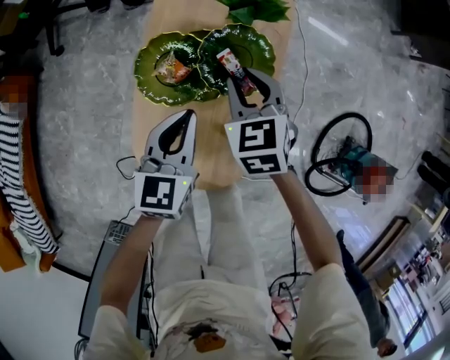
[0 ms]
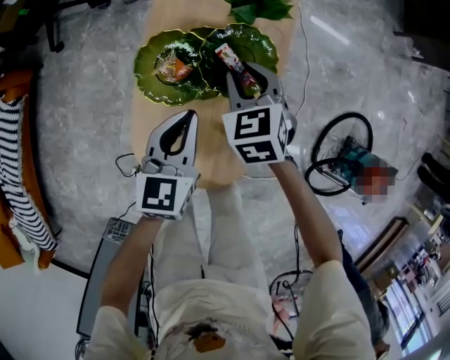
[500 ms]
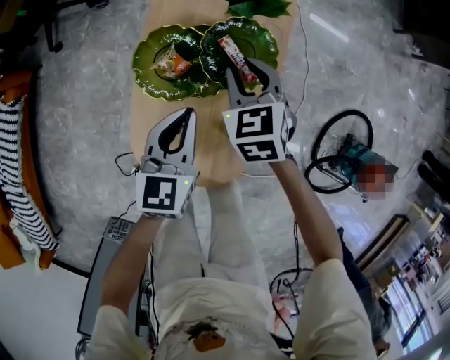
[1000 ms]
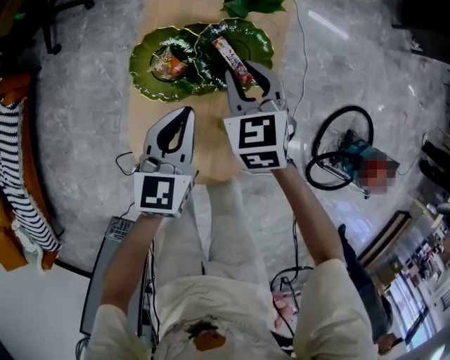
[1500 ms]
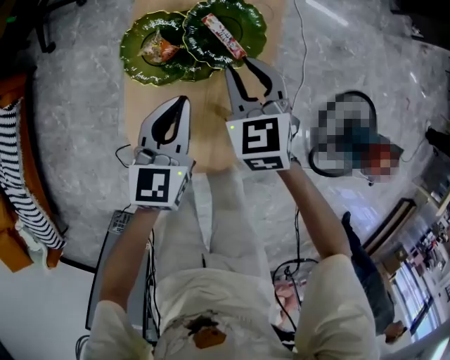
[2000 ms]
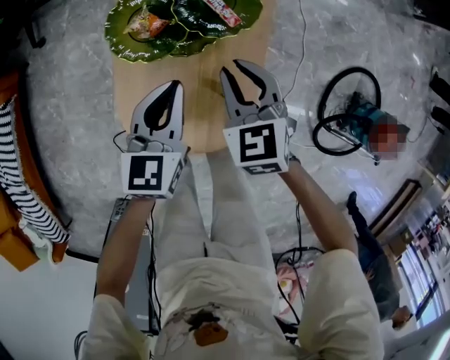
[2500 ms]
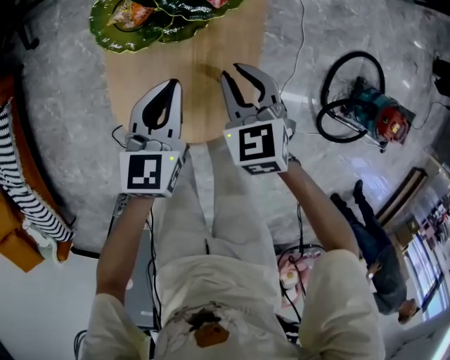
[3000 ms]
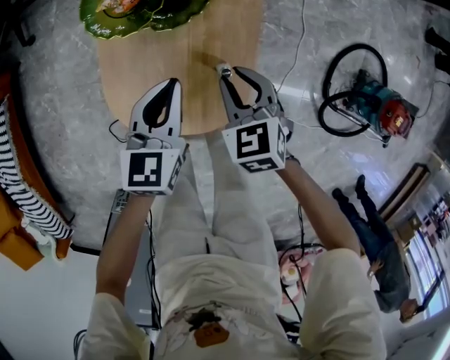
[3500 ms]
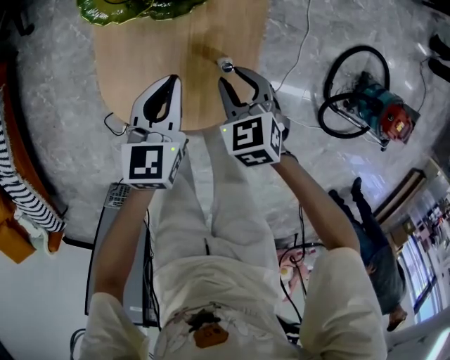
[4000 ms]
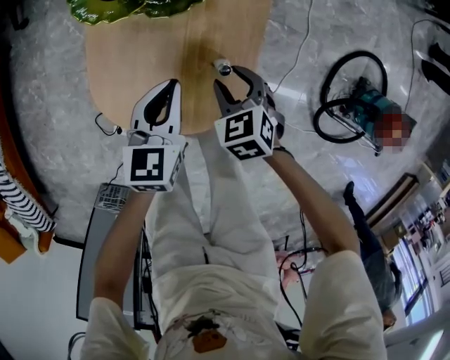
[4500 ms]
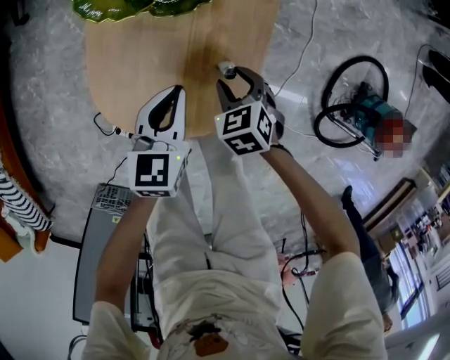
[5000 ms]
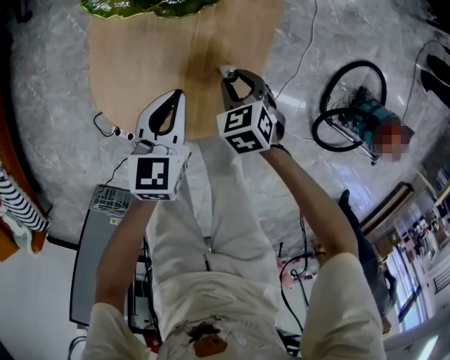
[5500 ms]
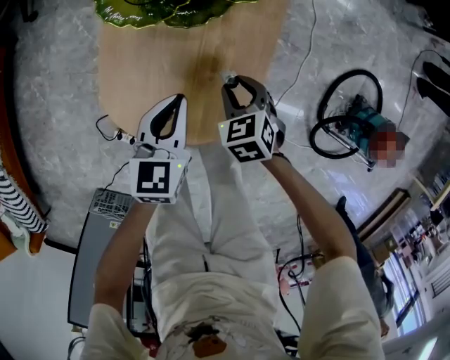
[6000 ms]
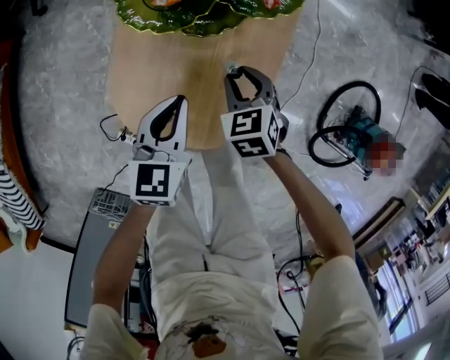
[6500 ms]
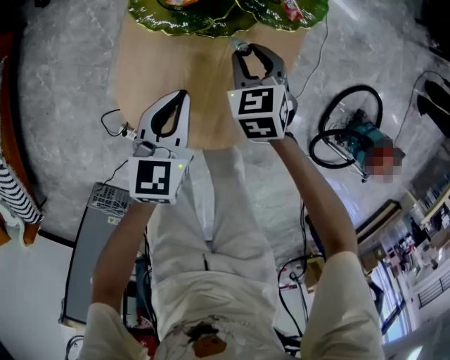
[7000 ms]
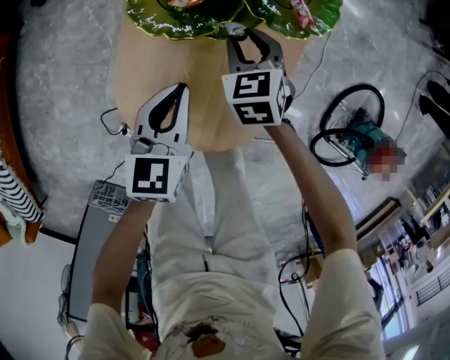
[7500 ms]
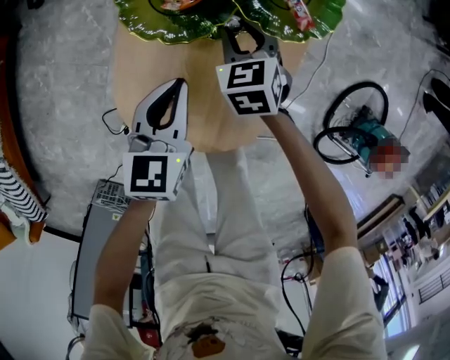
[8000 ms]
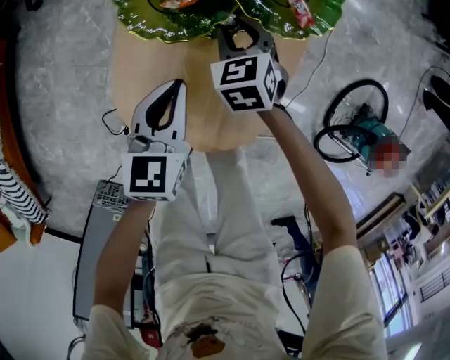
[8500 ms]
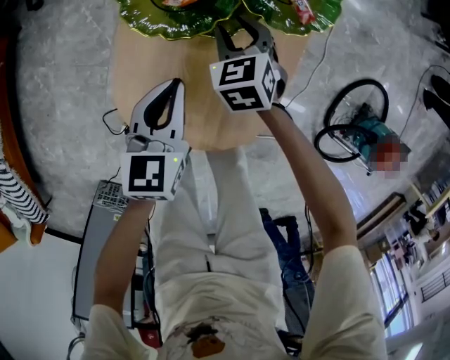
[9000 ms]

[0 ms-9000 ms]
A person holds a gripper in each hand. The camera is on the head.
0 ms to 2000 ms: The grippers make only small movements.
2000 ms to 4500 ms: The right gripper goes approximately 30 cm backward and downward, and changes its angle by some 20 degrees. The left gripper heads downward and backward, covering some 20 cm.
4500 ms to 7000 ms: The right gripper is displaced forward and to the left by about 15 cm, while the left gripper moves to the left, approximately 10 cm.
7000 ms to 9000 ms: The right gripper heads forward, covering some 5 cm.

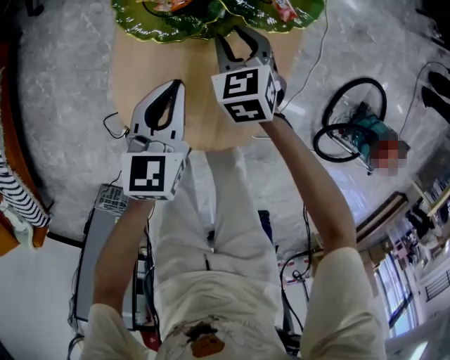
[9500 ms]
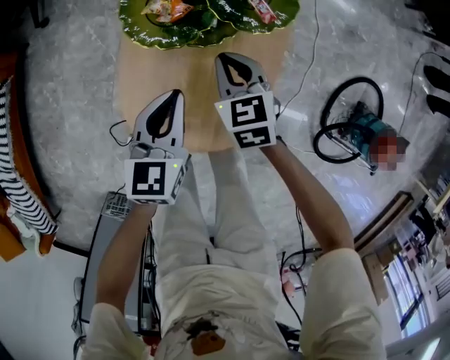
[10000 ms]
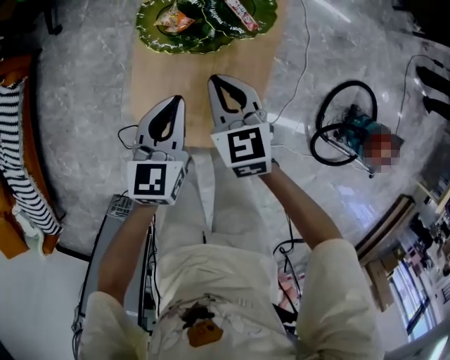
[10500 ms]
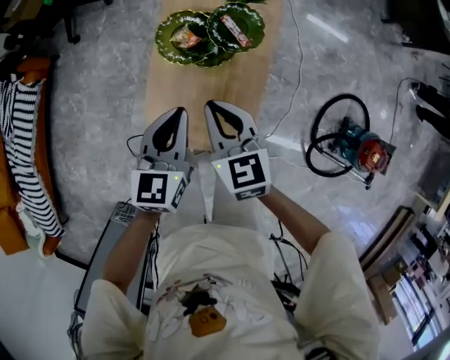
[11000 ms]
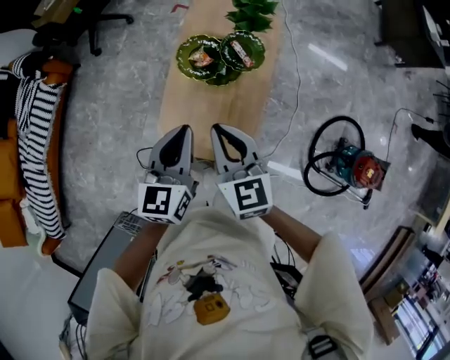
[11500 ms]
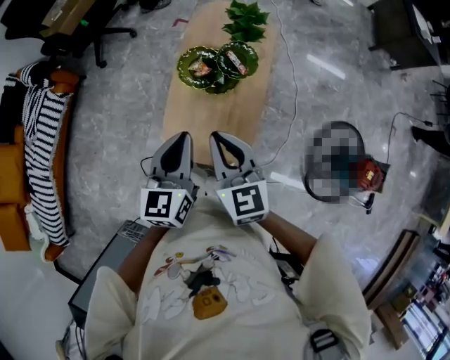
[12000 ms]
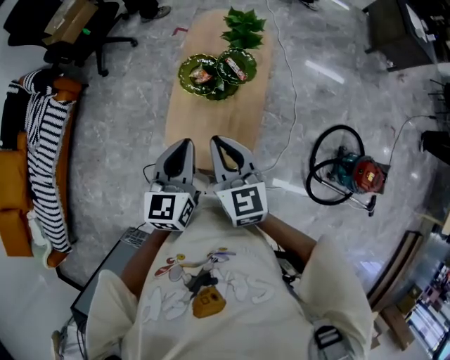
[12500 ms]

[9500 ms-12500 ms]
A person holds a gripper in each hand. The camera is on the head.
9500 ms to 11000 ms: The left gripper heads upward, covering some 25 cm. Meanwhile the right gripper is displaced upward and backward by about 35 cm, rotates roughly 20 degrees, and closes up.
11000 ms to 12500 ms: Both grippers move upward and backward, some 20 cm.

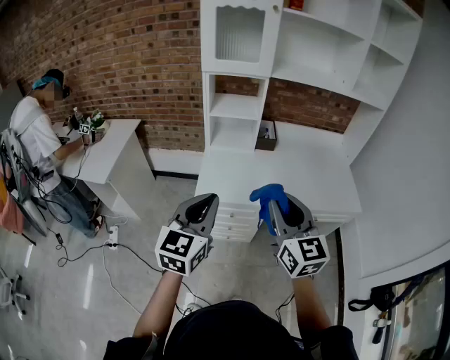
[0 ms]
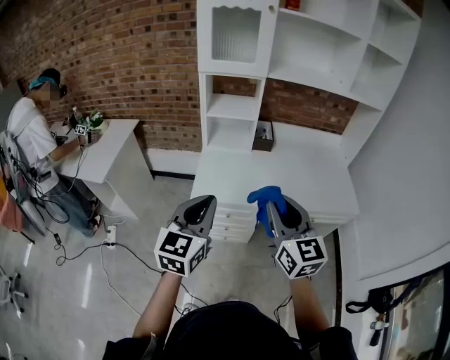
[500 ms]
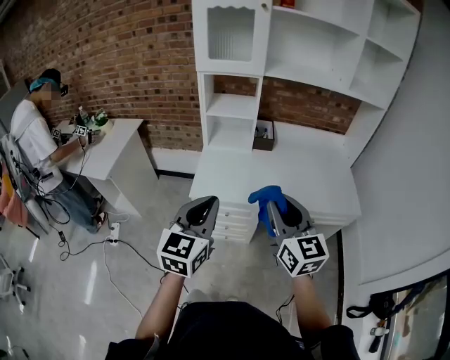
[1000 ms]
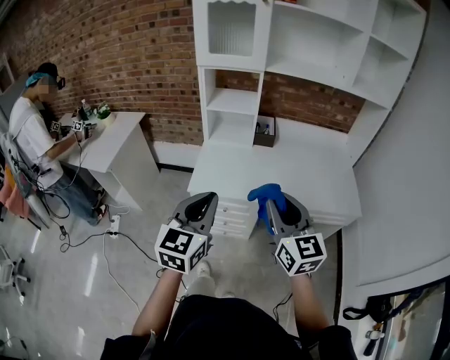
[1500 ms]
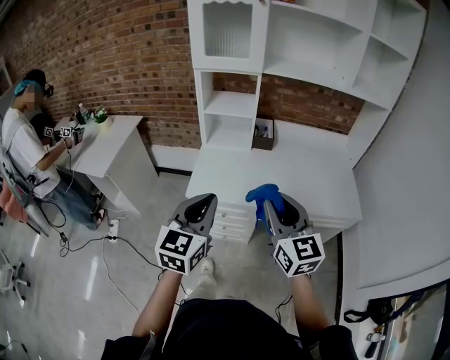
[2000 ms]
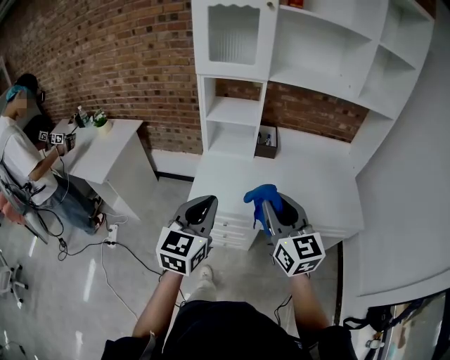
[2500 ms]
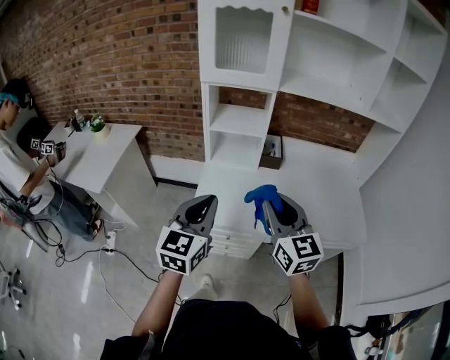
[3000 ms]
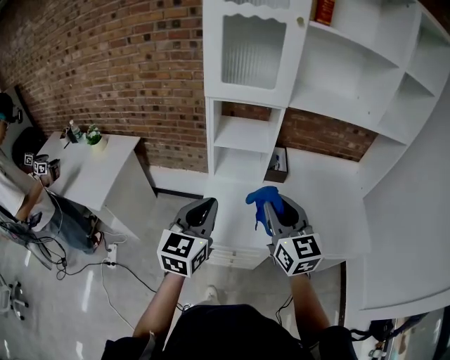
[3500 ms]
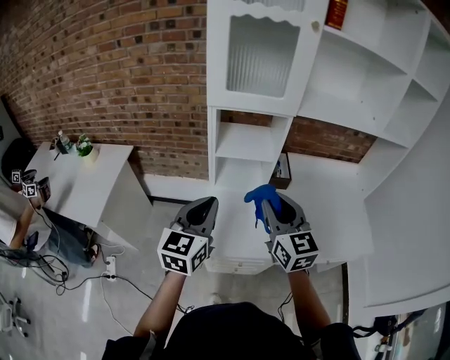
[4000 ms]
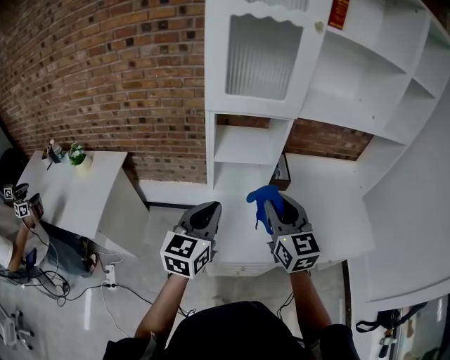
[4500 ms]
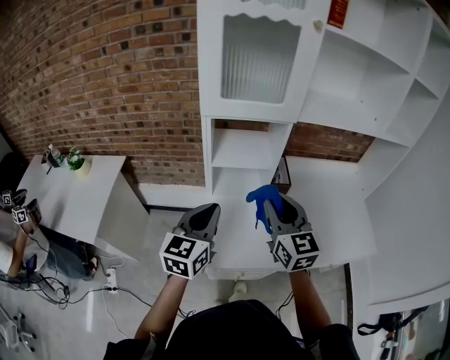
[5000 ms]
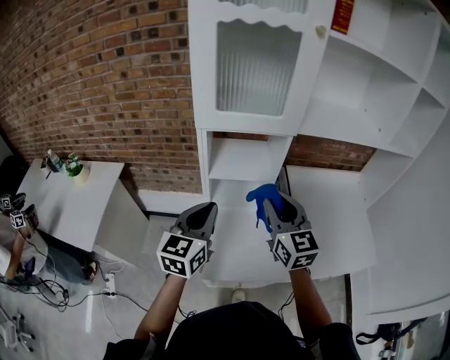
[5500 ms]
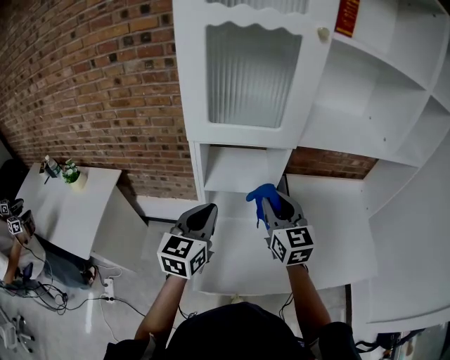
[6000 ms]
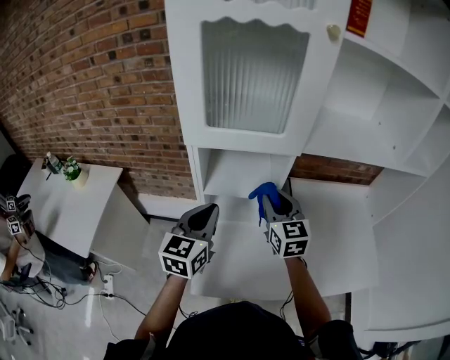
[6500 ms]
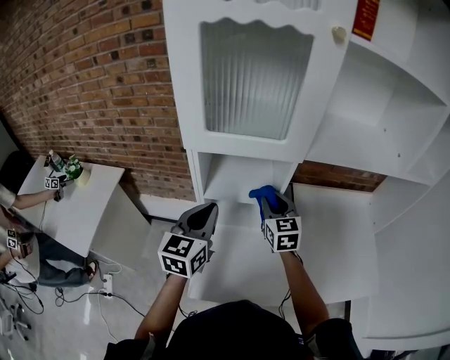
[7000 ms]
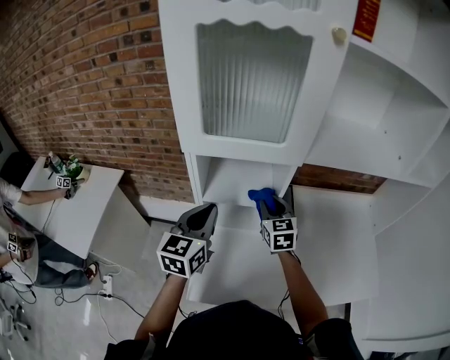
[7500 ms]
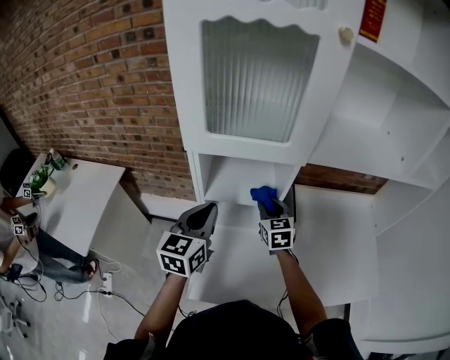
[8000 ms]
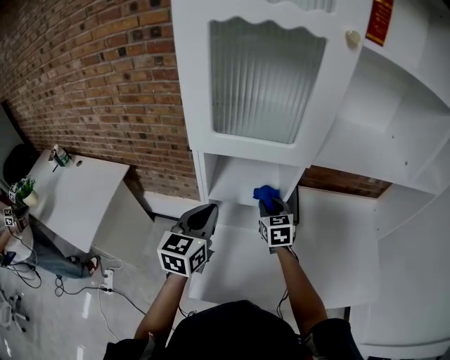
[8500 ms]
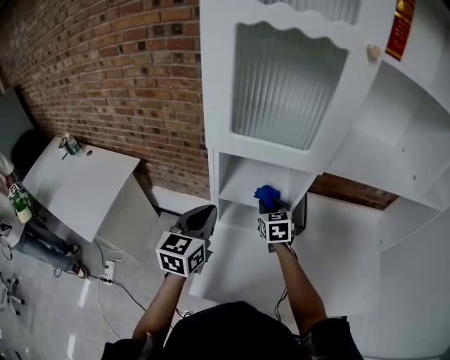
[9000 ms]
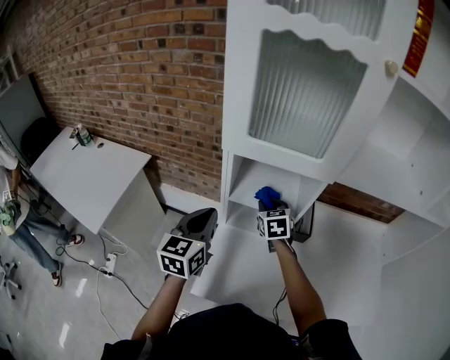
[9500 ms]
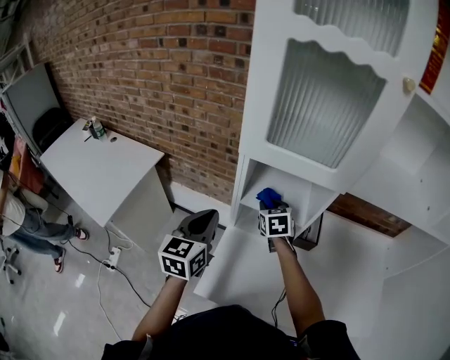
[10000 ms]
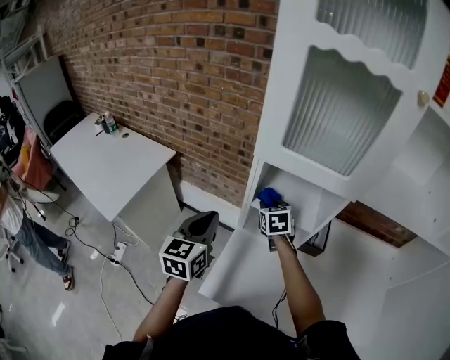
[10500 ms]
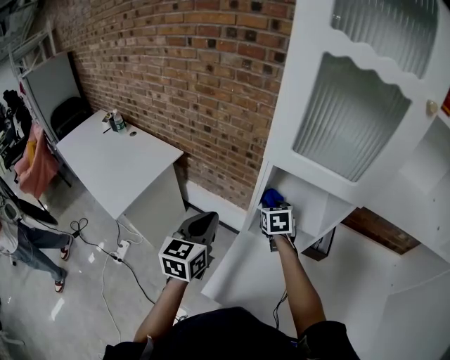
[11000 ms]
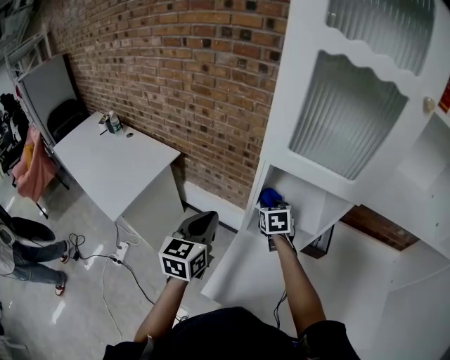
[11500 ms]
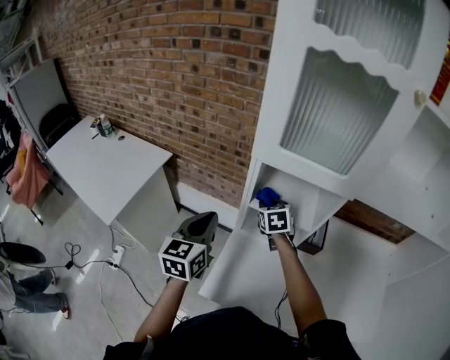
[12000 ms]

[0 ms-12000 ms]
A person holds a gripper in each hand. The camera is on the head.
0 ms to 2000 ms: The two grippers go some 5 cm to the right.
2000 ms to 4000 ms: The grippers both shift forward and to the left by approximately 30 cm.
4000 ms to 6000 ms: The grippers both shift forward by about 15 cm.
6000 ms to 8000 ms: The left gripper heads forward, covering about 5 cm. Meanwhile the right gripper moves downward and forward, approximately 20 cm.
8000 ms to 10000 ms: The grippers both shift to the left by some 10 cm.
10000 ms to 12000 ms: The grippers make only small movements.

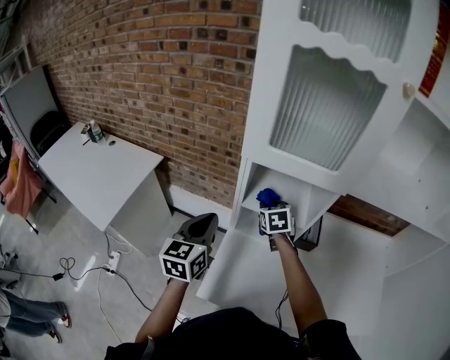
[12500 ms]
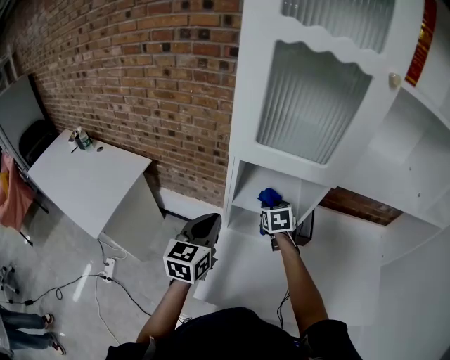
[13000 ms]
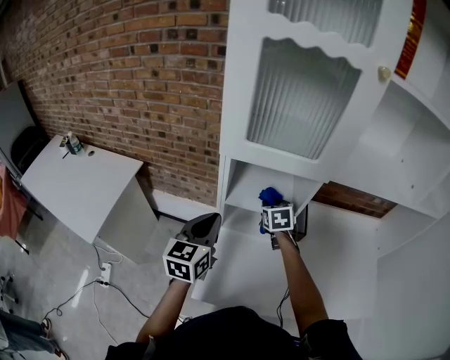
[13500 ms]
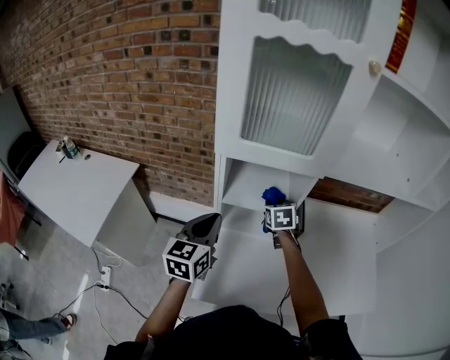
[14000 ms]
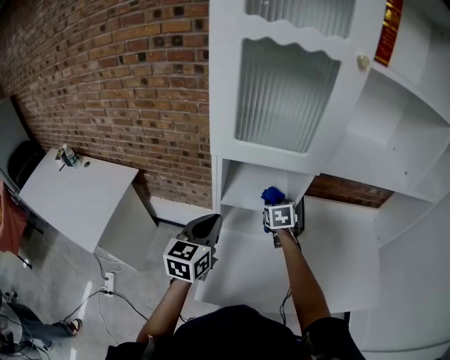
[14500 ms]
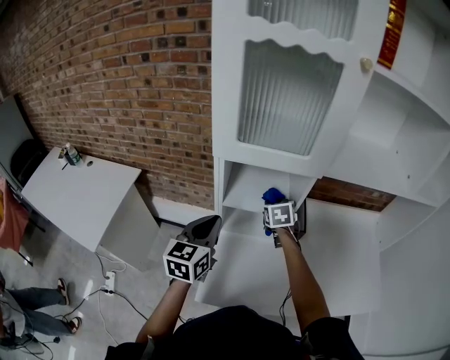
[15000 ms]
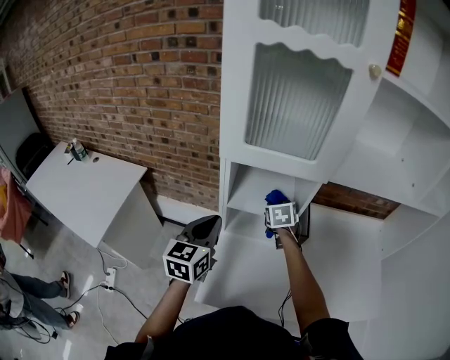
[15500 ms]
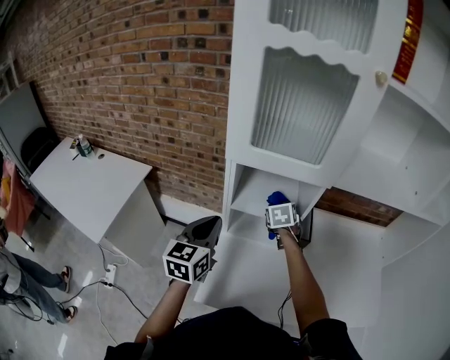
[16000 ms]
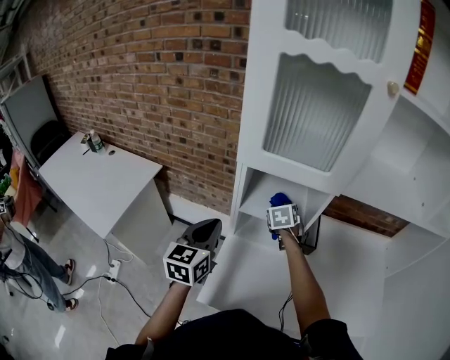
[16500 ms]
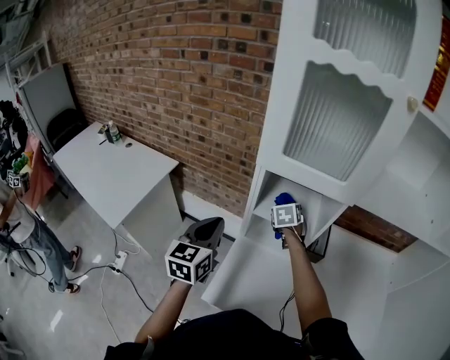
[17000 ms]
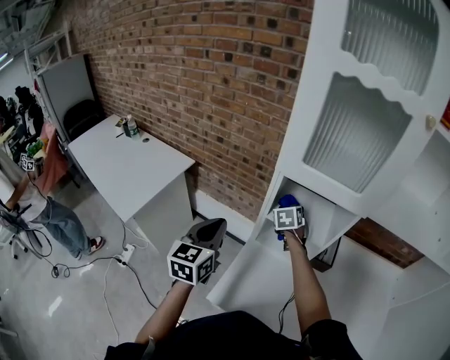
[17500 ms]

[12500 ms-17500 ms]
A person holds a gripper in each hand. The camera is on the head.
12500 ms to 15000 ms: The right gripper goes about 10 cm to the right; the left gripper is displaced to the right by some 5 cm.
15000 ms to 17500 ms: The grippers both shift to the left by approximately 10 cm.
